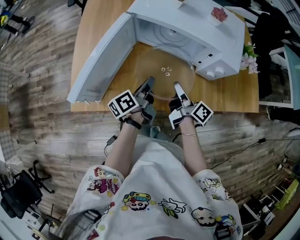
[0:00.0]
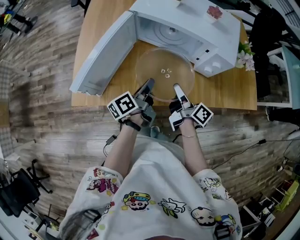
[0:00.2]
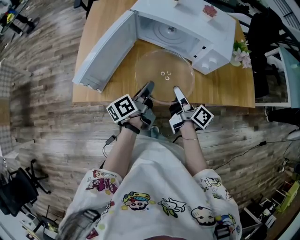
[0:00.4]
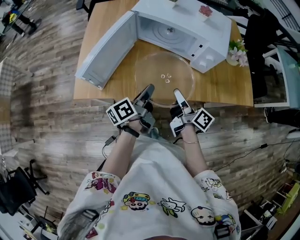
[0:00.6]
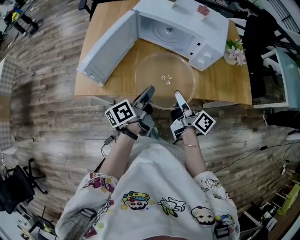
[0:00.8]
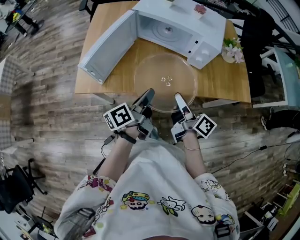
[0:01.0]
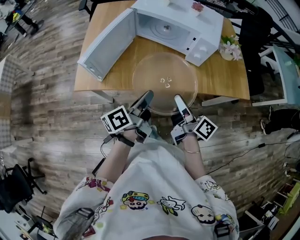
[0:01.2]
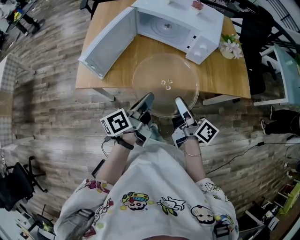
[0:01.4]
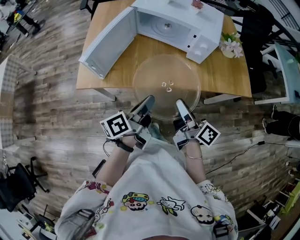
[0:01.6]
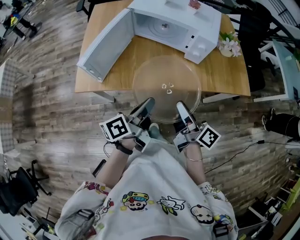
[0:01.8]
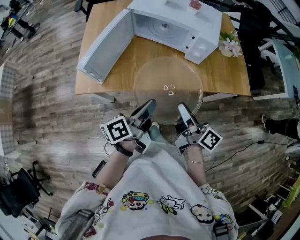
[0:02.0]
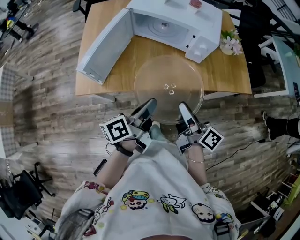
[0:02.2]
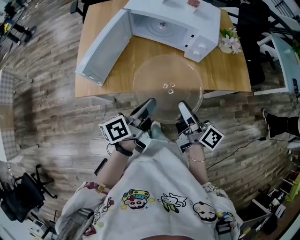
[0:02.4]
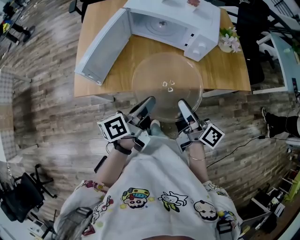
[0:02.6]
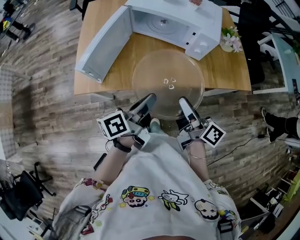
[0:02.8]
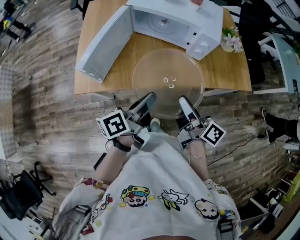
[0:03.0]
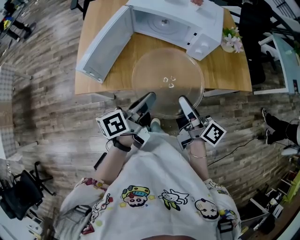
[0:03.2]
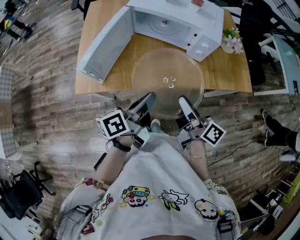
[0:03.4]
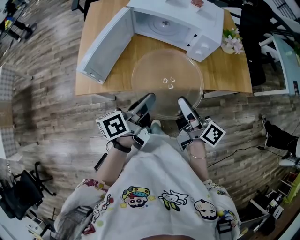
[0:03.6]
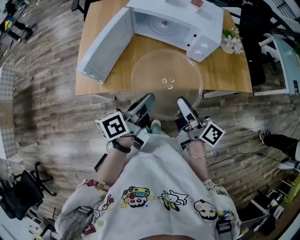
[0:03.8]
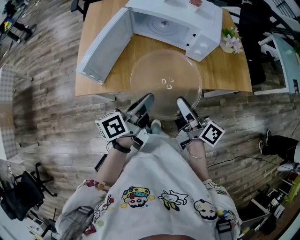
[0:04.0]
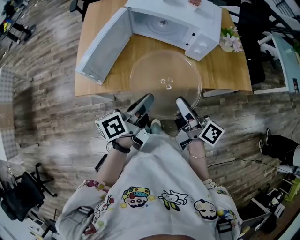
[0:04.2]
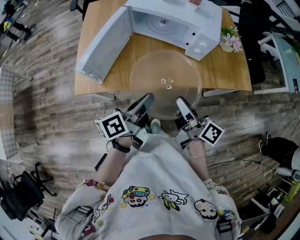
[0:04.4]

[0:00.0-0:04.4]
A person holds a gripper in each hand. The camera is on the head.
0:00.0 to 0:01.4: The two grippers go about 25 cm backward and upward.
0:01.4 to 0:03.0: The grippers move only a little.
0:03.0 to 0:04.4: Neither gripper changes place.

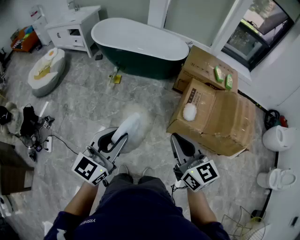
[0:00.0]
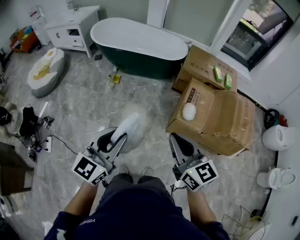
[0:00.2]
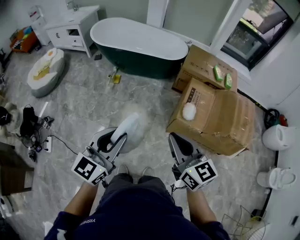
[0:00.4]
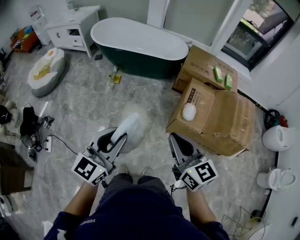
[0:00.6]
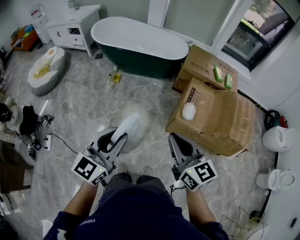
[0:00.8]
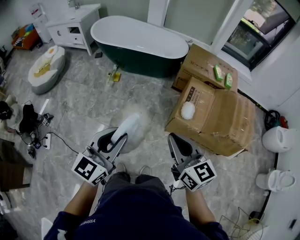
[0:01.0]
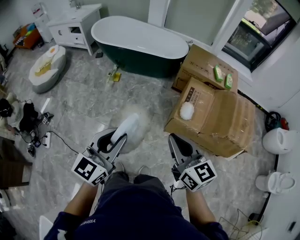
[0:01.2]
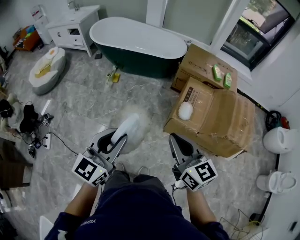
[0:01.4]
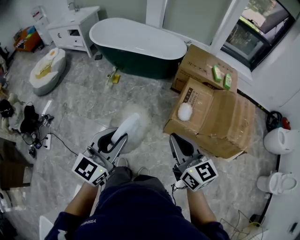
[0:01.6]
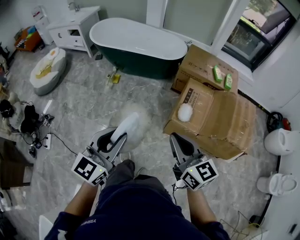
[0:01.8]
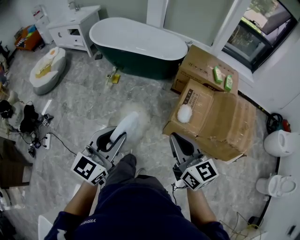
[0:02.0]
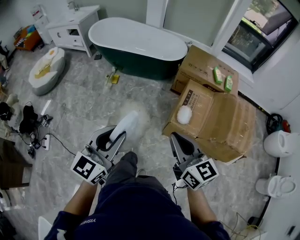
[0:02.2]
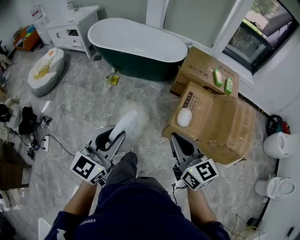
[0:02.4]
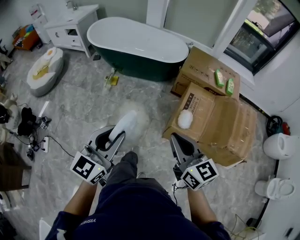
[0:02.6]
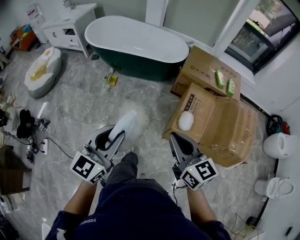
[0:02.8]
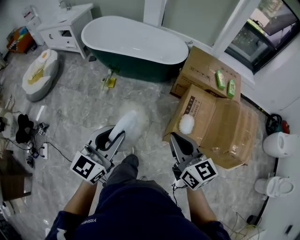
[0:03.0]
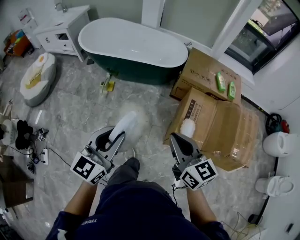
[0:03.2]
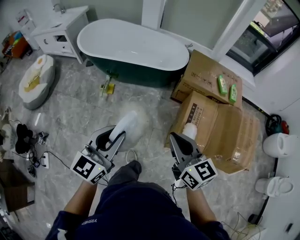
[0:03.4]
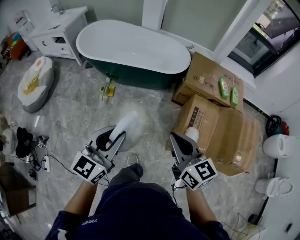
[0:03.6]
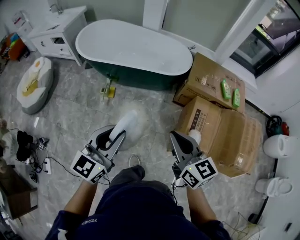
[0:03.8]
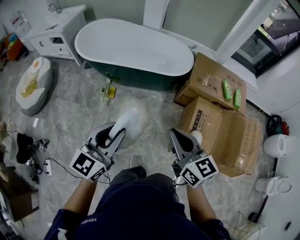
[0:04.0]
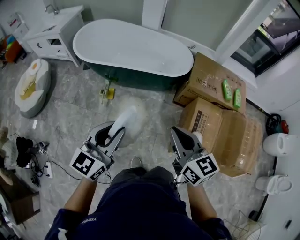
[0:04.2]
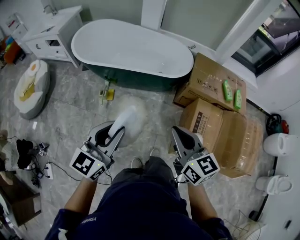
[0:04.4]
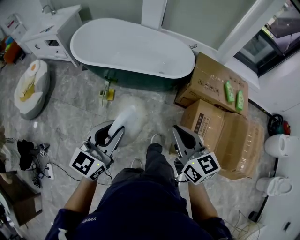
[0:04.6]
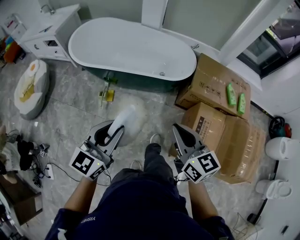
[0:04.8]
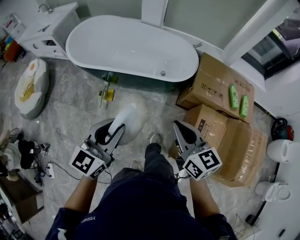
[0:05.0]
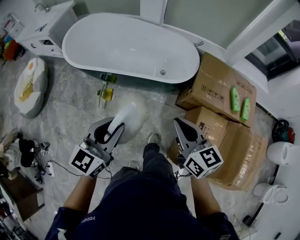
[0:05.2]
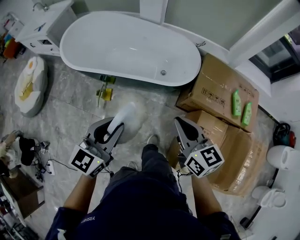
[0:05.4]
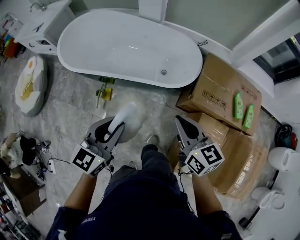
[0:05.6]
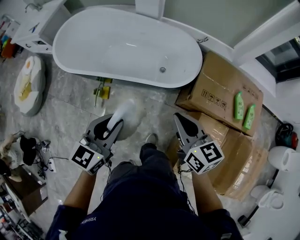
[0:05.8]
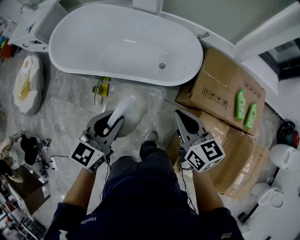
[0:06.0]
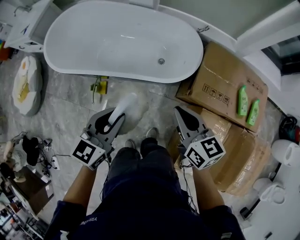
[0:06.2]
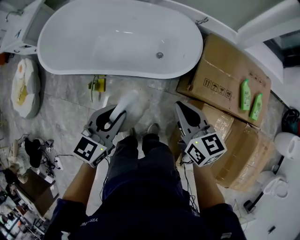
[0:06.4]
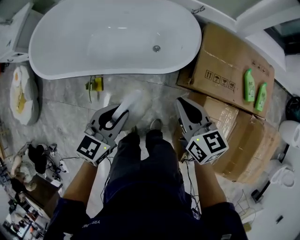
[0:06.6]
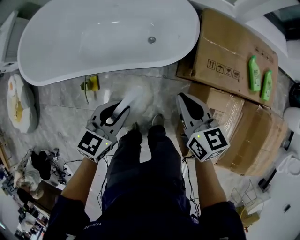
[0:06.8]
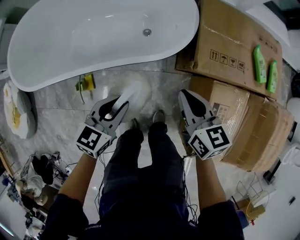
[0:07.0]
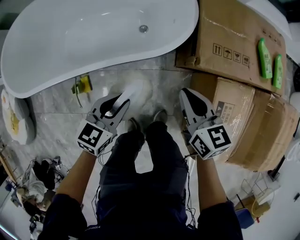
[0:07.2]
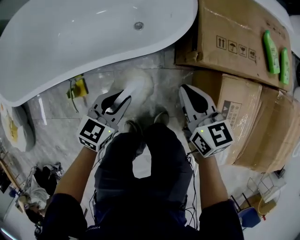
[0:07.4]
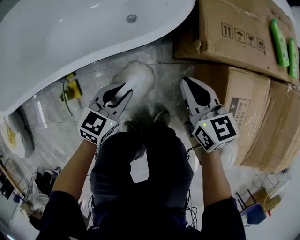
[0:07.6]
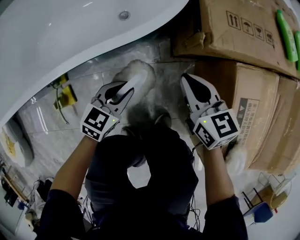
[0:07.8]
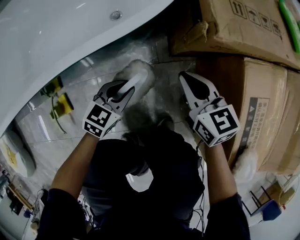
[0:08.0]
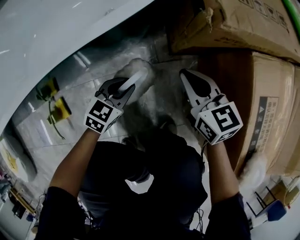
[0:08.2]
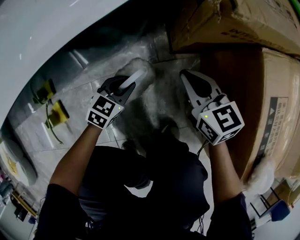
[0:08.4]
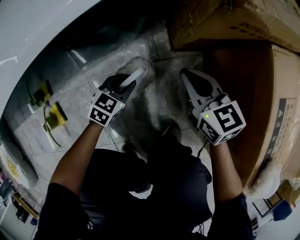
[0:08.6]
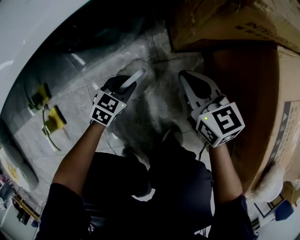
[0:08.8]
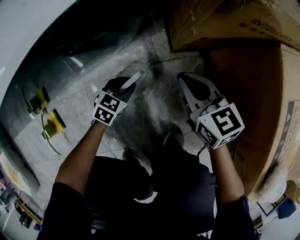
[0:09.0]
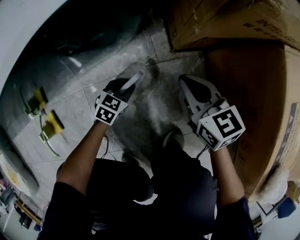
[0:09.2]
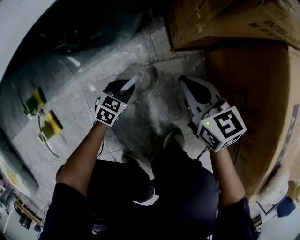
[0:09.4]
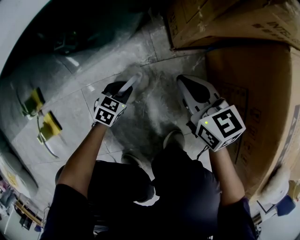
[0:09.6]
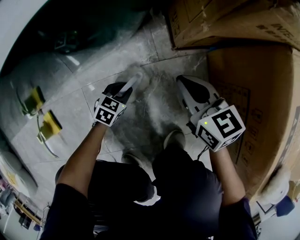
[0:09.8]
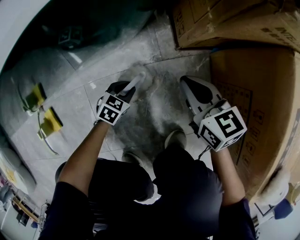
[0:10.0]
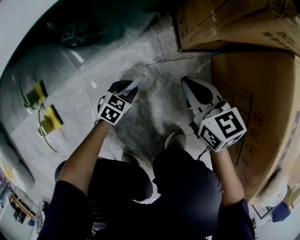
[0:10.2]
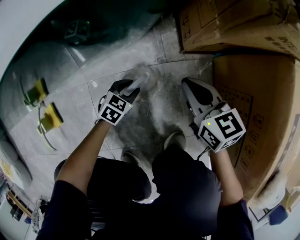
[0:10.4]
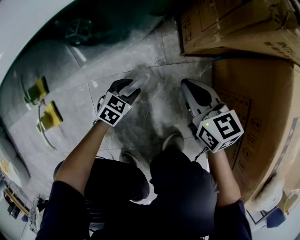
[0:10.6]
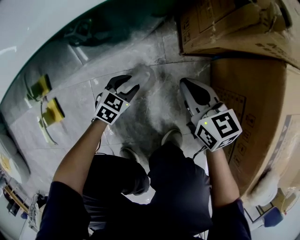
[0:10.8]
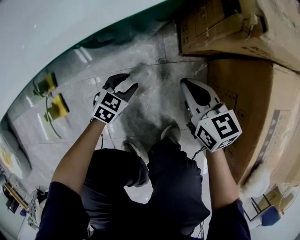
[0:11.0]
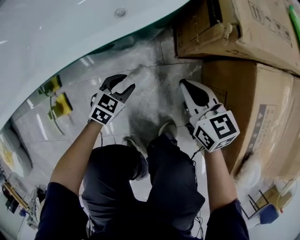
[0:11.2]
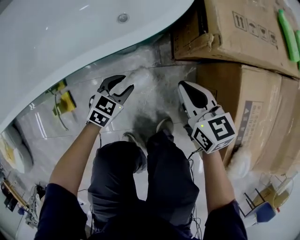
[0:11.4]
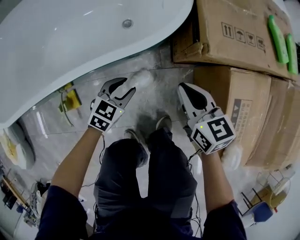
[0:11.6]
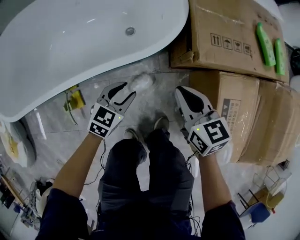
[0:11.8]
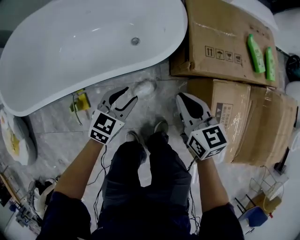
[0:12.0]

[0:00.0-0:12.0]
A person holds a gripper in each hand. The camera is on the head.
0:00.0 to 0:01.6: Both grippers move to the right, about 5 cm.
0:01.6 to 0:03.0: The two grippers go approximately 15 cm forward.
0:03.0 to 0:04.4: The two grippers go some 25 cm forward and to the left.
0:04.4 to 0:06.0: The two grippers go some 35 cm forward.
0:06.0 to 0:07.6: Both grippers travel together downward, about 40 cm. The right gripper rotates about 20 degrees. Meanwhile the left gripper swivels some 30 degrees.
0:07.6 to 0:09.0: Both grippers move downward, approximately 35 cm.
0:09.0 to 0:10.4: The left gripper moves downward, about 5 cm.
0:10.4 to 0:12.0: Both grippers travel together upward, some 50 cm.

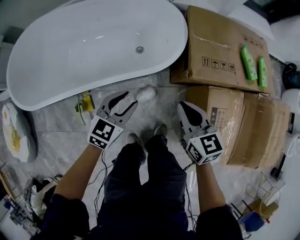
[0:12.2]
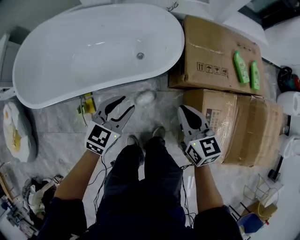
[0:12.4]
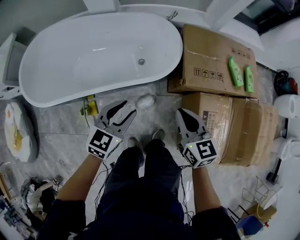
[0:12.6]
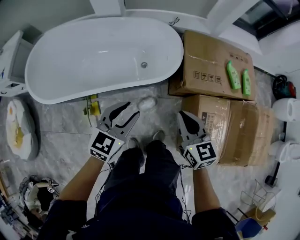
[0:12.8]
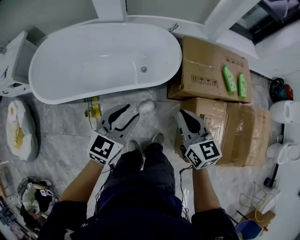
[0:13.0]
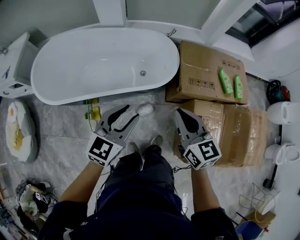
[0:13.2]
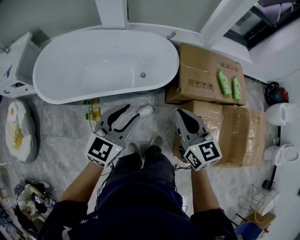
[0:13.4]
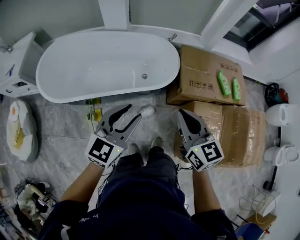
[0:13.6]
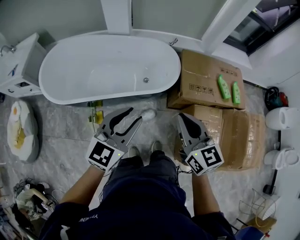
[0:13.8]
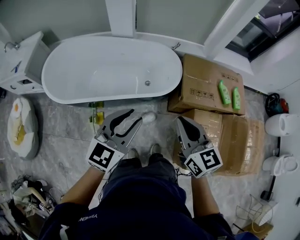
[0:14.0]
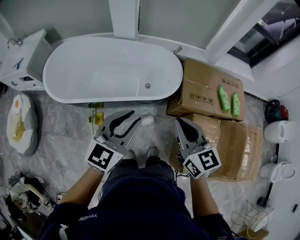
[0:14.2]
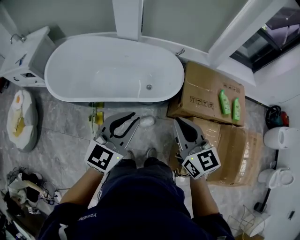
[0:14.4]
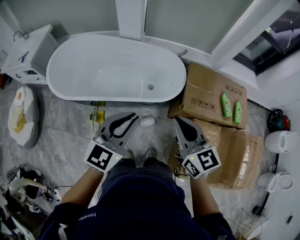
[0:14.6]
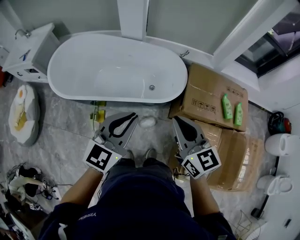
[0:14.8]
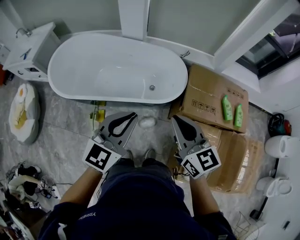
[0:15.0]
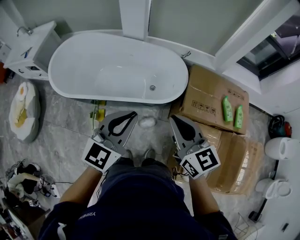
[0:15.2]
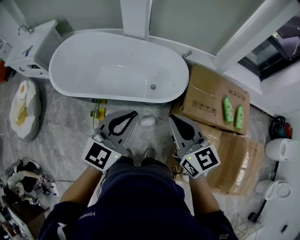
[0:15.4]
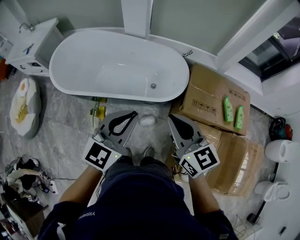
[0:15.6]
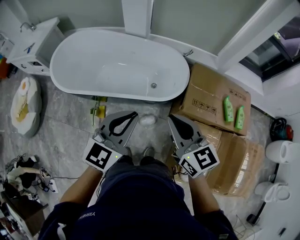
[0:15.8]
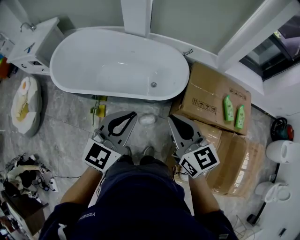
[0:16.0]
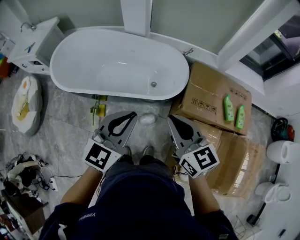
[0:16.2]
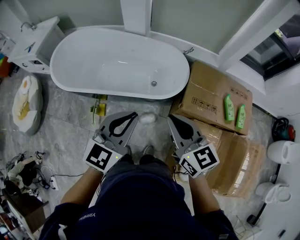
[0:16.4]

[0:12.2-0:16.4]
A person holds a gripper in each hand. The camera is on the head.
0:12.2 to 0:13.6: The two grippers go approximately 30 cm upward. The left gripper swivels some 20 degrees.
0:13.6 to 0:15.0: The right gripper moves some 5 cm. Meanwhile the left gripper moves upward, approximately 5 cm, and closes its fingers.
0:15.0 to 0:16.4: The grippers move only a little.

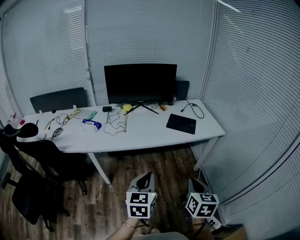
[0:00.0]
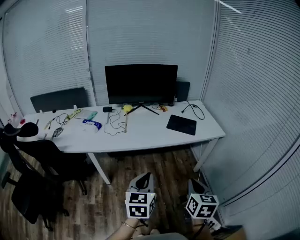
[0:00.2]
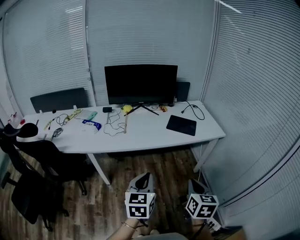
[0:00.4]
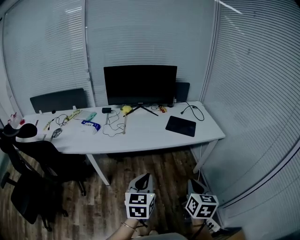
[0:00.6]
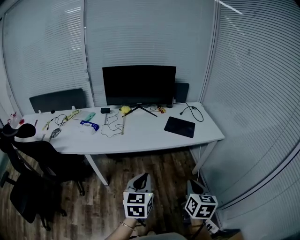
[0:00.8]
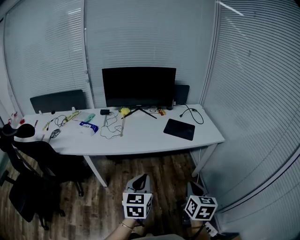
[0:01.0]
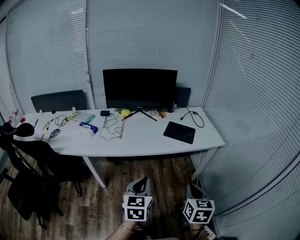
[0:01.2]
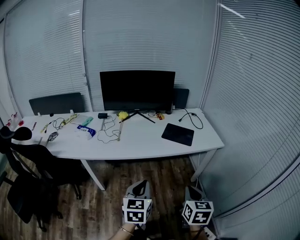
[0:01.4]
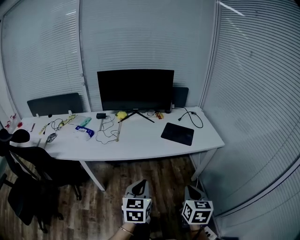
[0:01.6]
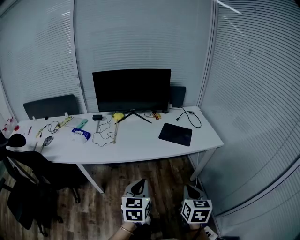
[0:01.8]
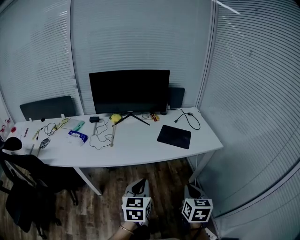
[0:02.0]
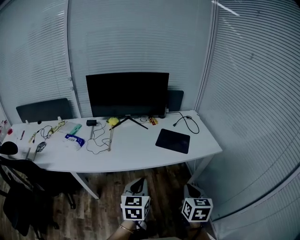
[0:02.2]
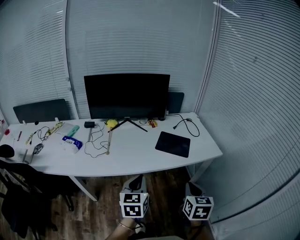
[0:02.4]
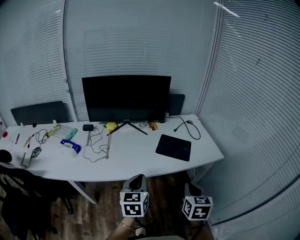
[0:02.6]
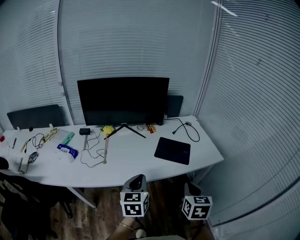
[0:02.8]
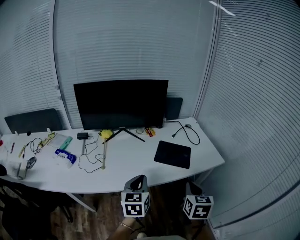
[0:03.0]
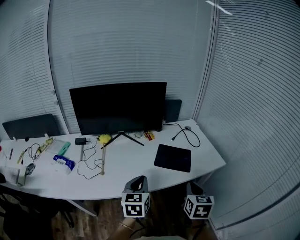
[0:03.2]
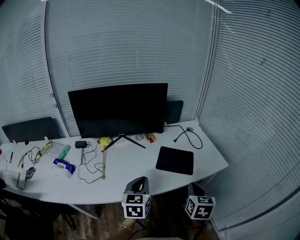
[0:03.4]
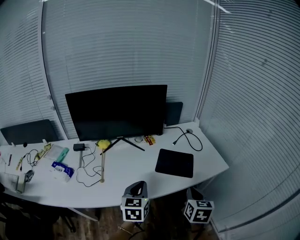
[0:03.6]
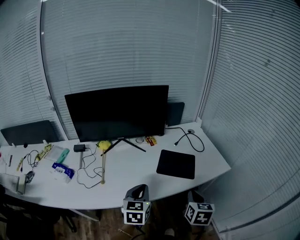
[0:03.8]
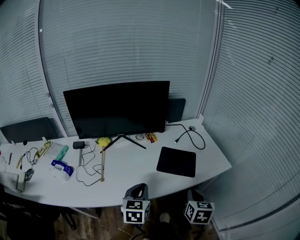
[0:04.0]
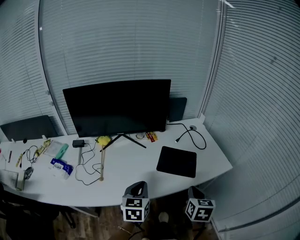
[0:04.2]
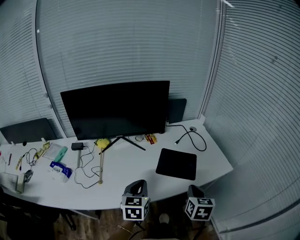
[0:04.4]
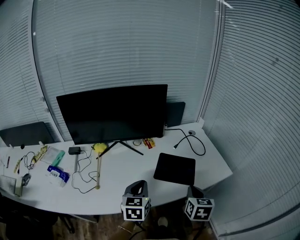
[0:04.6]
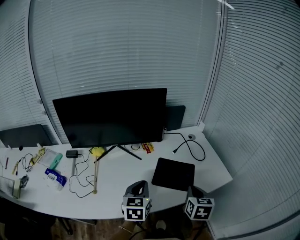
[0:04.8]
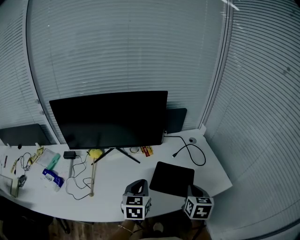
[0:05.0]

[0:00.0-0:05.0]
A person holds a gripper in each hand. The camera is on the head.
0:00.0 to 0:01.6: Both grippers travel together forward, roughly 5 cm.
0:01.6 to 0:03.4: The grippers both shift forward by about 25 cm.
0:03.4 to 0:05.0: The two grippers go about 15 cm forward.
